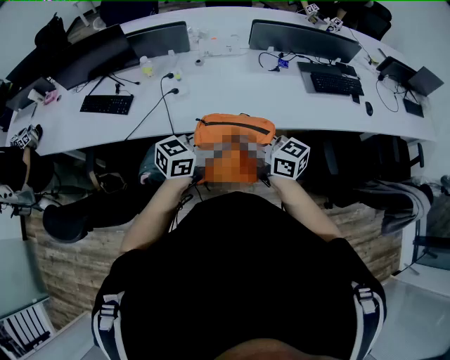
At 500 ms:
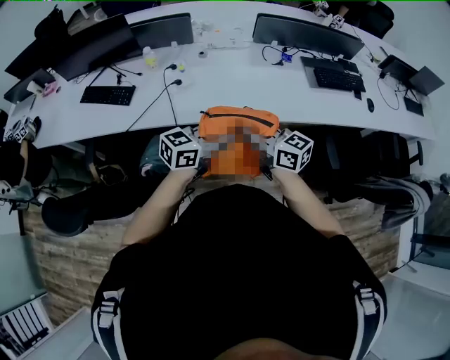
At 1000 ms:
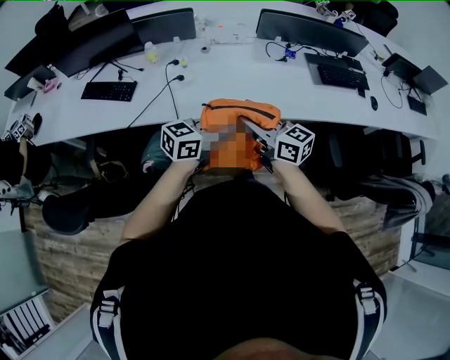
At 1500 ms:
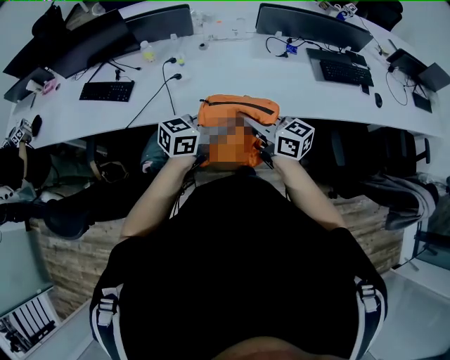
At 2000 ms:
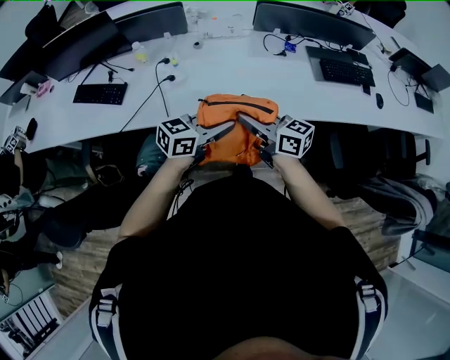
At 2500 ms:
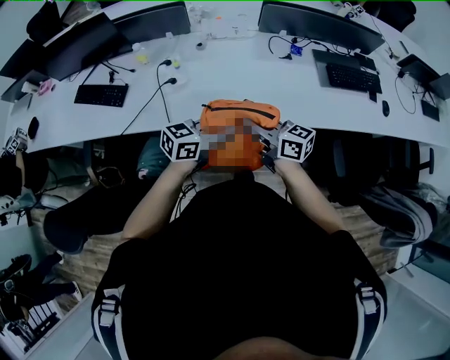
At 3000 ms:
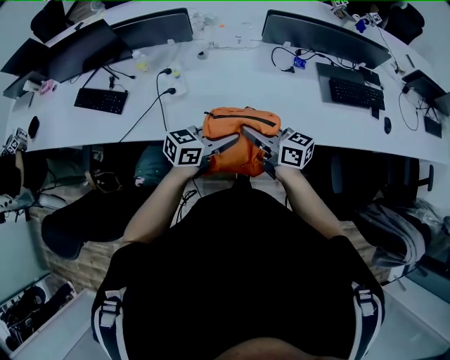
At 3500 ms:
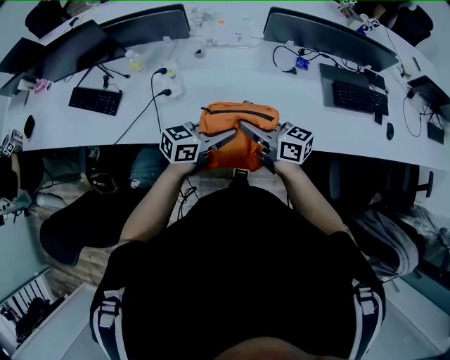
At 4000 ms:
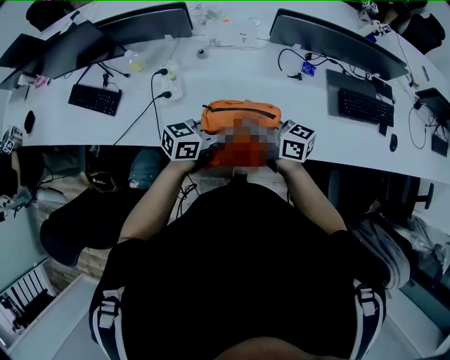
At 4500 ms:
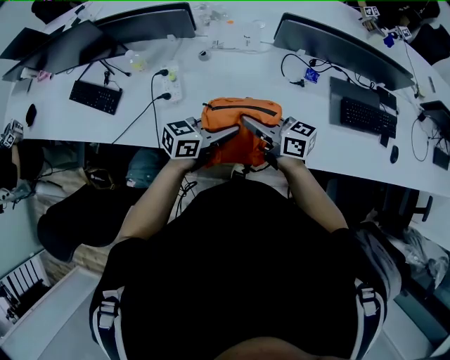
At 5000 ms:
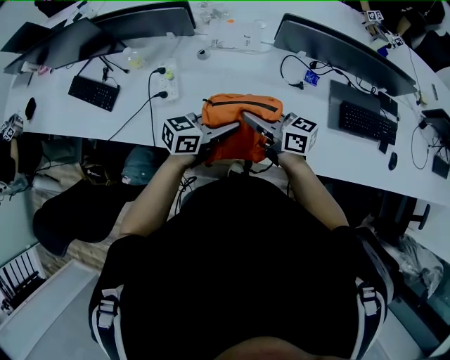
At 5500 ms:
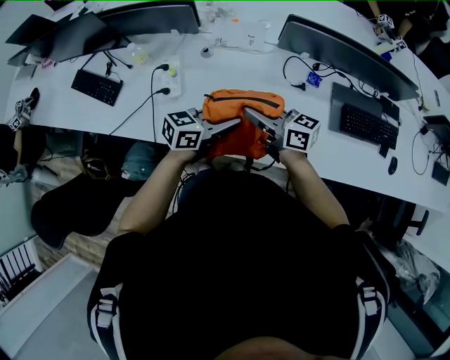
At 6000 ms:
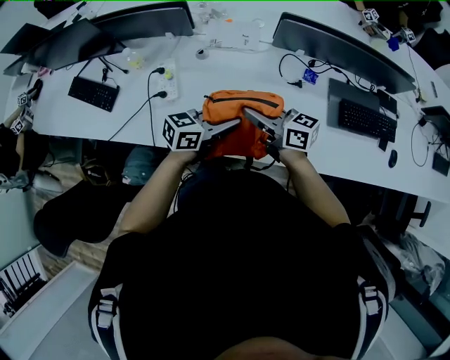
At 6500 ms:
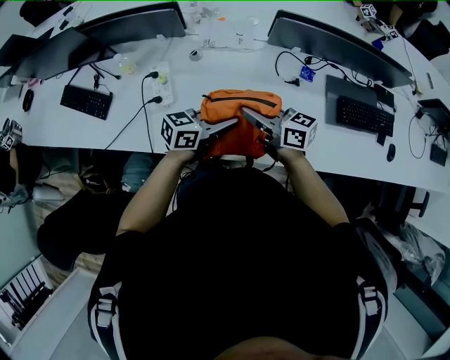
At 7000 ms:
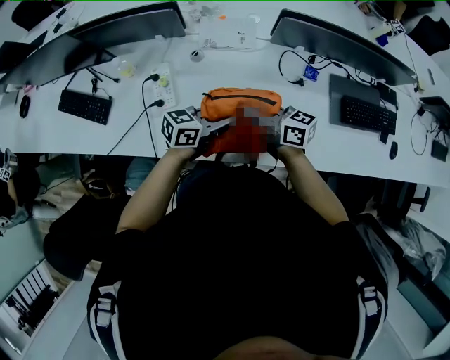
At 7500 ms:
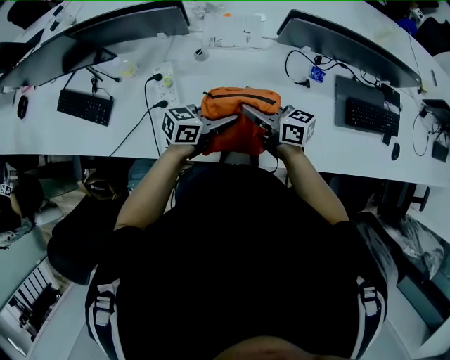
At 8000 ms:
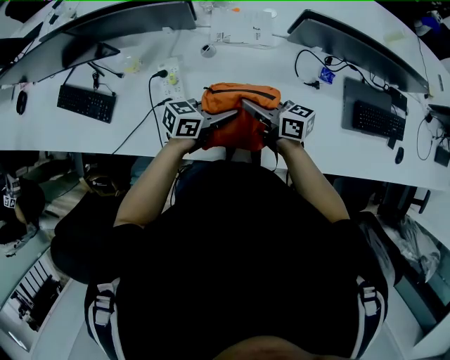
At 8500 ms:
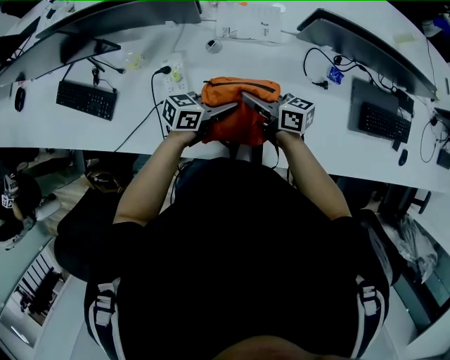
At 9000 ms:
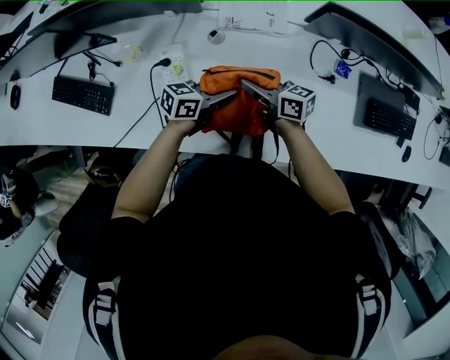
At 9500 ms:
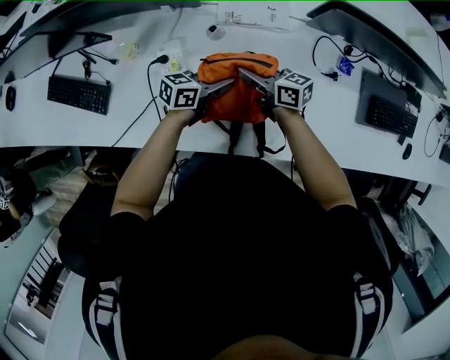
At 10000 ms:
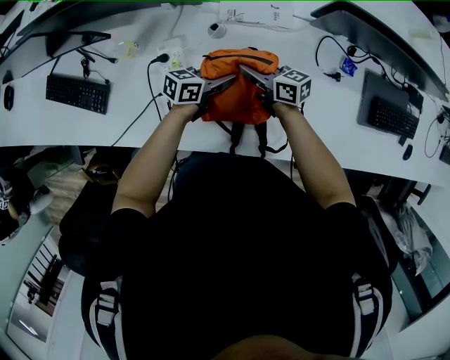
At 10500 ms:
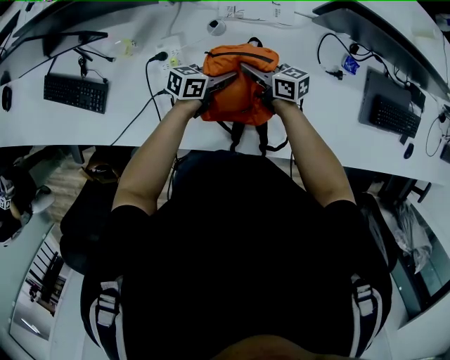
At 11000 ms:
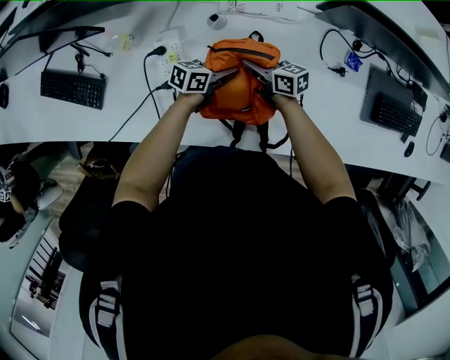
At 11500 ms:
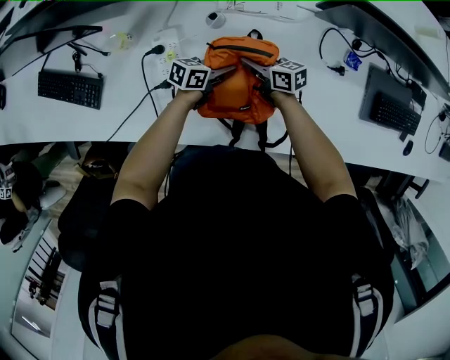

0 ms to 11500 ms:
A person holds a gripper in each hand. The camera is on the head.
0 ms to 2000 ms: The grippers both shift forward by some 10 cm.
2000 ms to 4000 ms: The left gripper shifts by some 20 cm. Meanwhile the right gripper ends up about 20 cm from where it was.
4000 ms to 6000 ms: The left gripper ends up some 5 cm from where it was. Meanwhile the right gripper ends up approximately 5 cm from where it was.
6000 ms to 7500 ms: The right gripper moves some 10 cm. The left gripper ends up roughly 10 cm from where it was.
7500 ms to 9500 ms: The right gripper shifts by roughly 15 cm. Meanwhile the left gripper moves approximately 15 cm.
9500 ms to 11500 ms: Both grippers travel together downward, about 10 cm.

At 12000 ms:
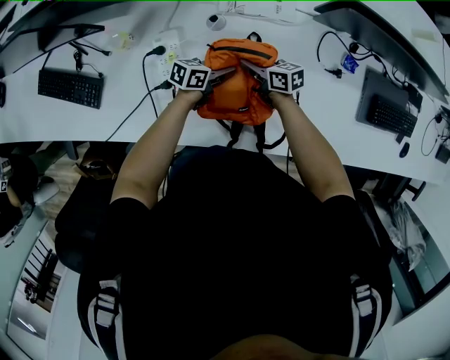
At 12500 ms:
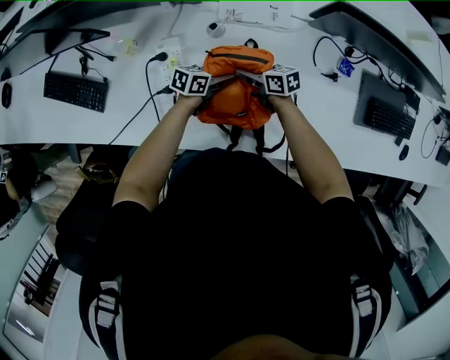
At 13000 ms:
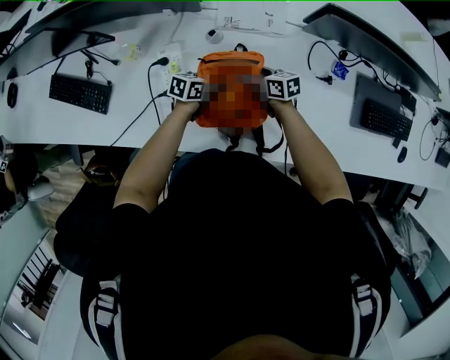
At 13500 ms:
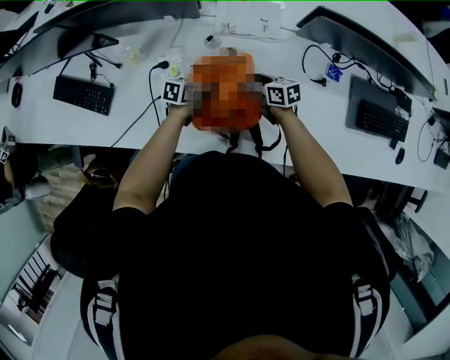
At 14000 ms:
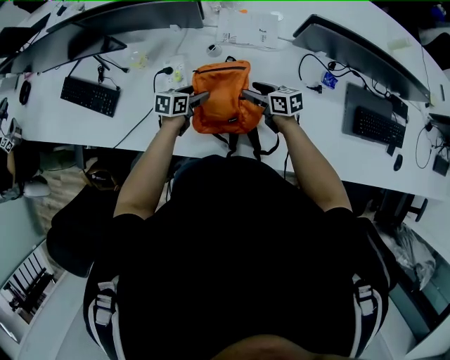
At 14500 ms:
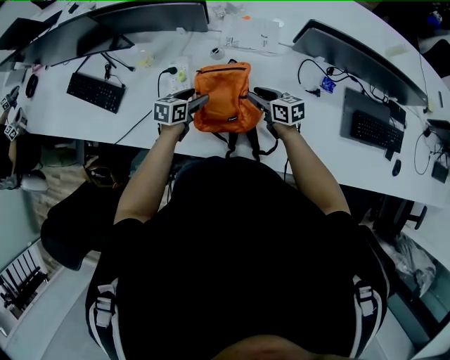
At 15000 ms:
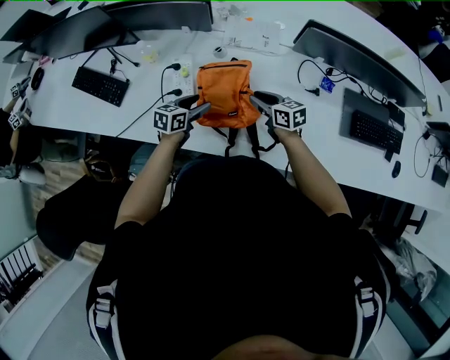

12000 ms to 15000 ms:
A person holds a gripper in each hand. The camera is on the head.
12000 ms to 13500 ms: The right gripper changes place by roughly 5 cm, and opens its fingers. The left gripper ends up approximately 5 cm from where it was, and opens.
13500 ms to 15000 ms: The grippers both shift upward and backward by roughly 15 cm. The right gripper closes.

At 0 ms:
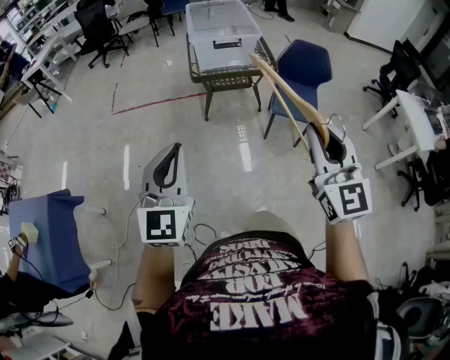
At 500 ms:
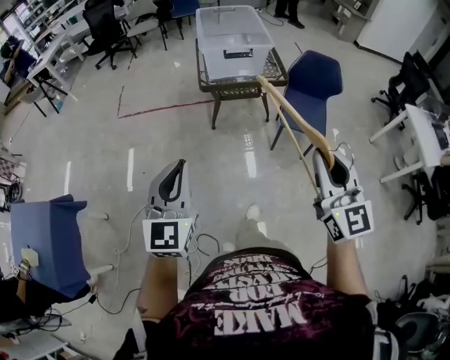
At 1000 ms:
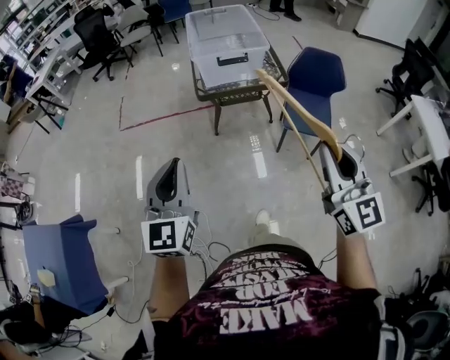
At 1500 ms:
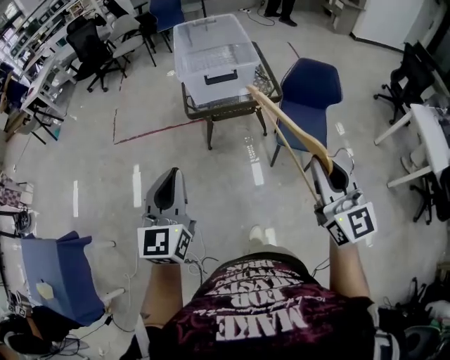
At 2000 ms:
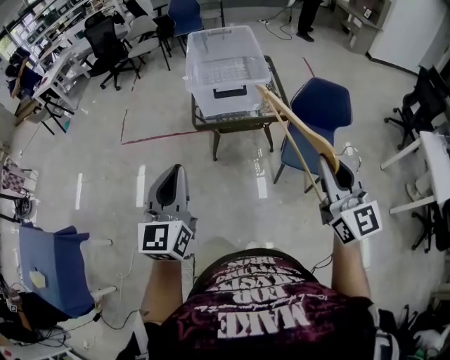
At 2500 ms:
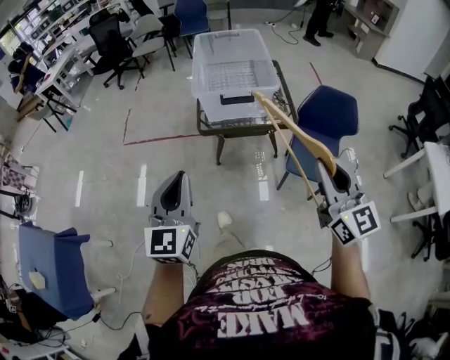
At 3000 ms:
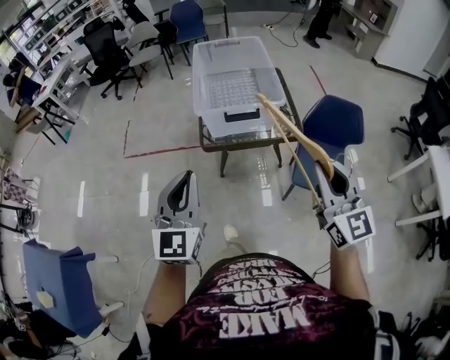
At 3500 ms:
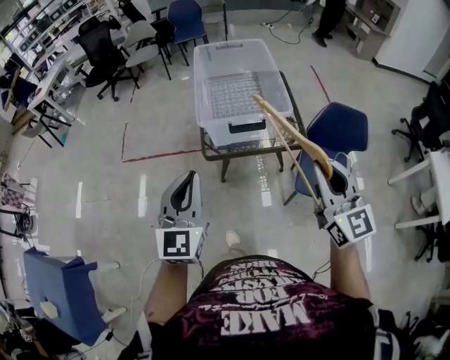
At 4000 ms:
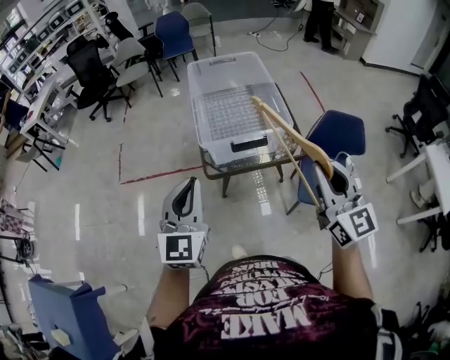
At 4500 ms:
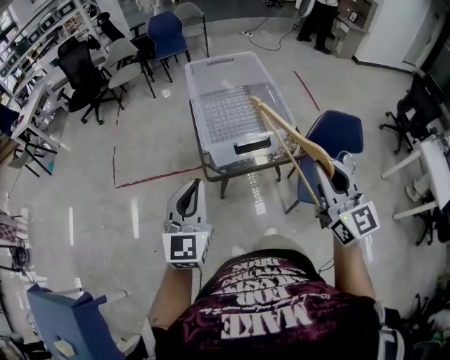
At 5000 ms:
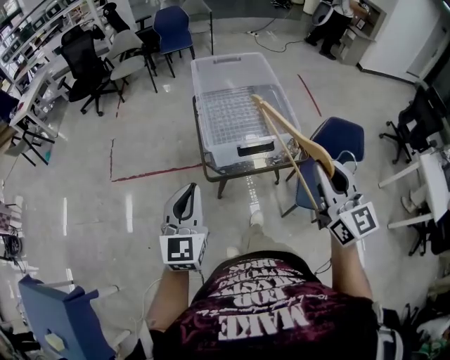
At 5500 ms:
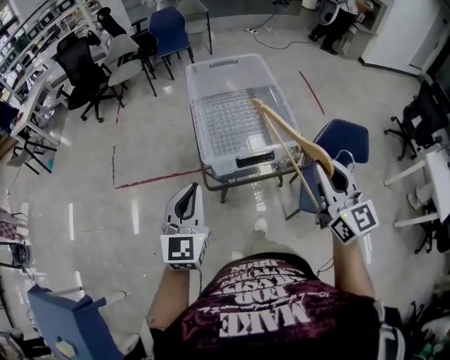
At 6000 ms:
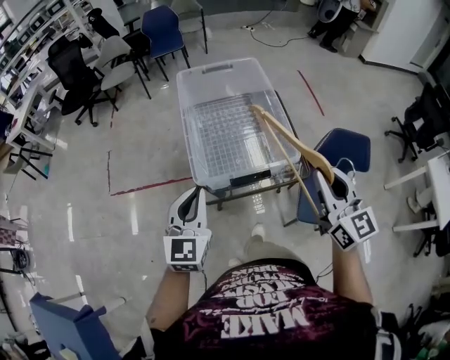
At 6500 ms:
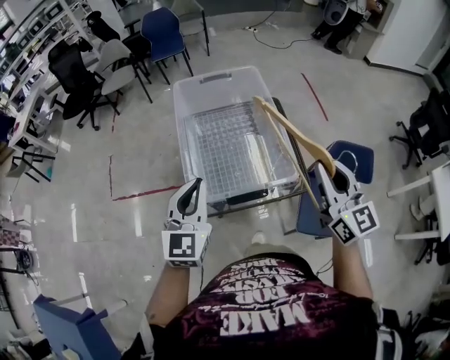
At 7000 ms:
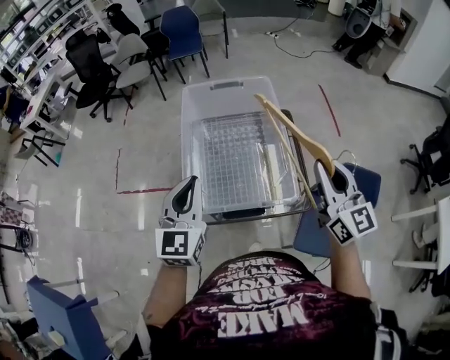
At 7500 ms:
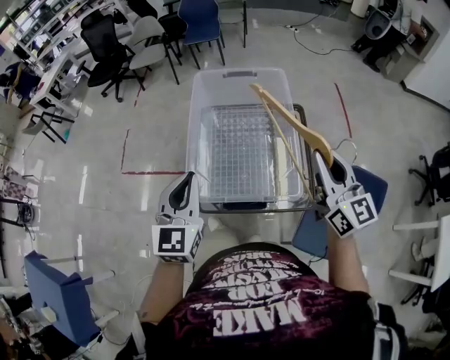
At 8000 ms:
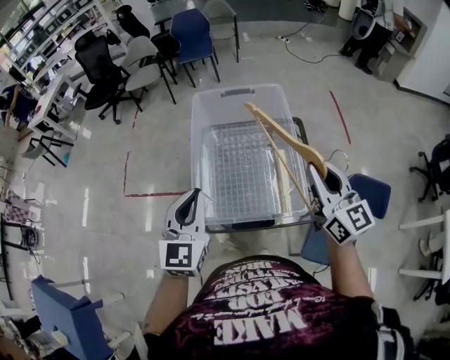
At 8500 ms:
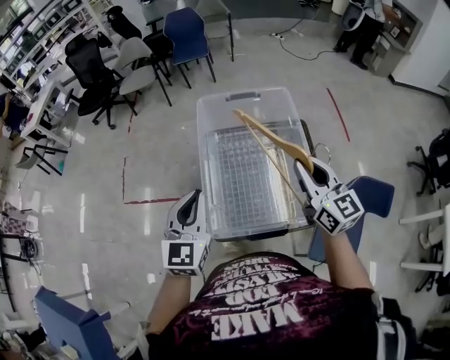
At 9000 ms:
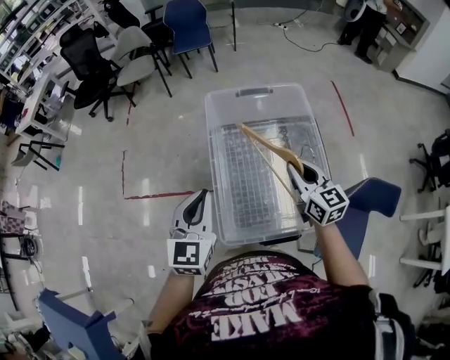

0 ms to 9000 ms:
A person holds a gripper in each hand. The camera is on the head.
0 ms to 2000 ms: The right gripper shifts some 30 cm forward and to the right, while the left gripper moves forward, approximately 25 cm.
2000 ms to 4500 ms: The left gripper travels forward by some 30 cm, while the right gripper heads forward and to the left, covering approximately 30 cm.
4500 ms to 7000 ms: Both grippers travel together forward, some 30 cm.
7000 ms to 9000 ms: The left gripper goes roughly 15 cm forward, to the left and downward. The right gripper travels forward, downward and to the left by about 30 cm.

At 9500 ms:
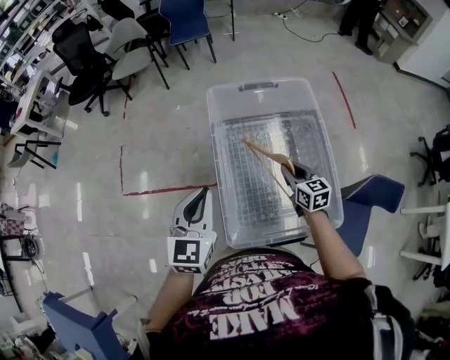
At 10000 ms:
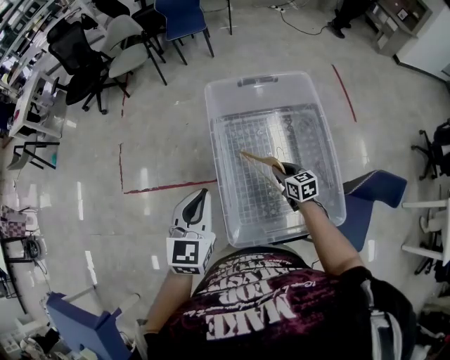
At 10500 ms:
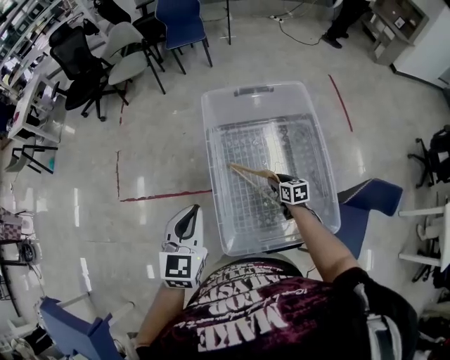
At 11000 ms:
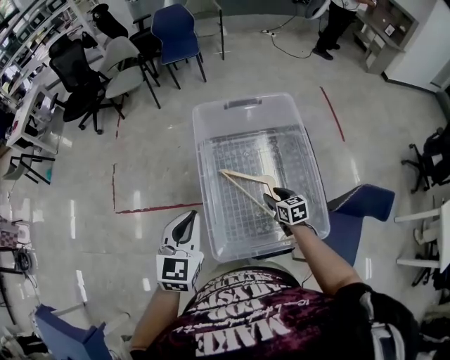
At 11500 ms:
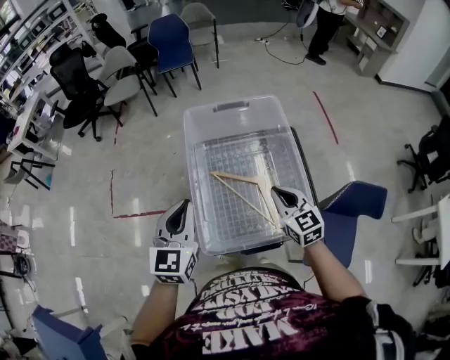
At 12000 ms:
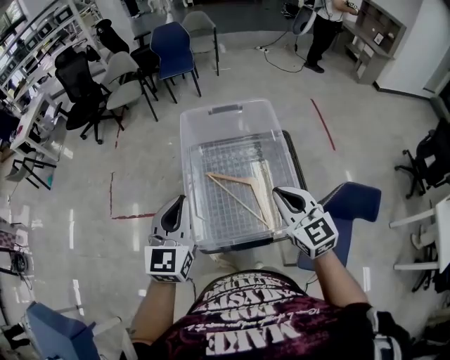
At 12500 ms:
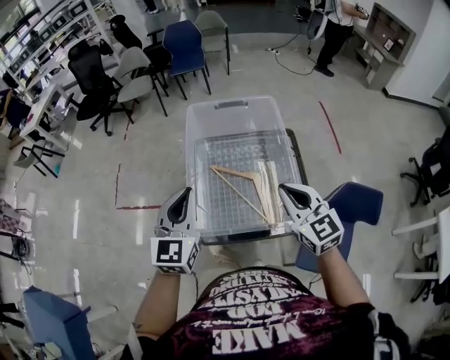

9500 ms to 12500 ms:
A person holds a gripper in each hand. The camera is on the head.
9500 ms to 11000 ms: The right gripper is displaced downward by approximately 10 cm, and opens up.
11000 ms to 12500 ms: The right gripper is displaced upward and backward by some 35 cm, turns by some 40 degrees, and closes up, while the left gripper goes about 15 cm upward, to the right and backward.
